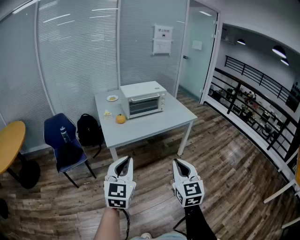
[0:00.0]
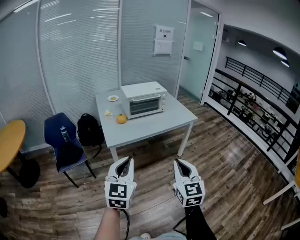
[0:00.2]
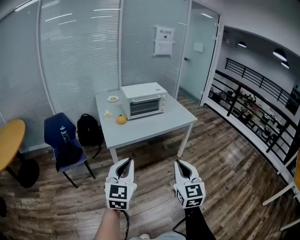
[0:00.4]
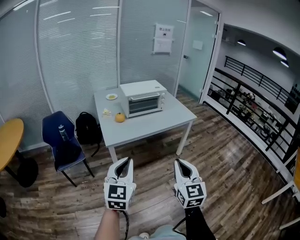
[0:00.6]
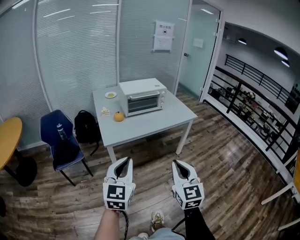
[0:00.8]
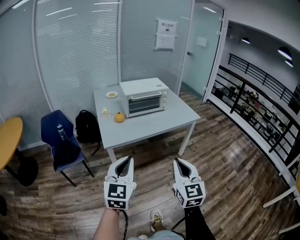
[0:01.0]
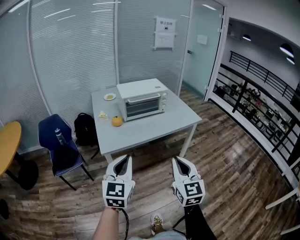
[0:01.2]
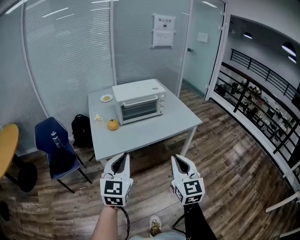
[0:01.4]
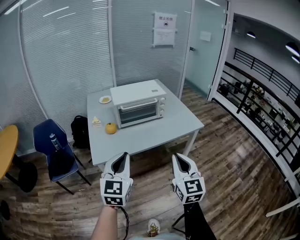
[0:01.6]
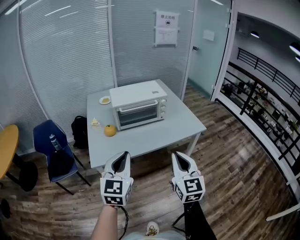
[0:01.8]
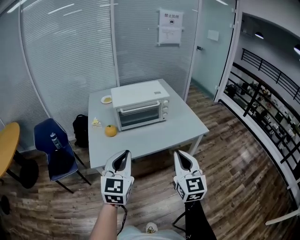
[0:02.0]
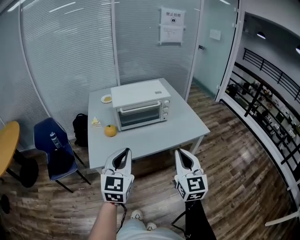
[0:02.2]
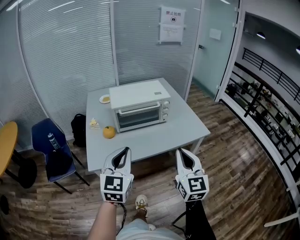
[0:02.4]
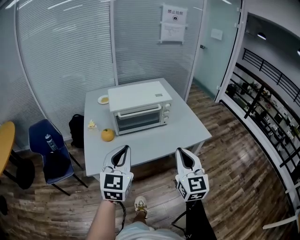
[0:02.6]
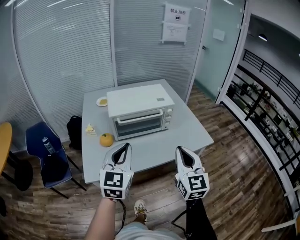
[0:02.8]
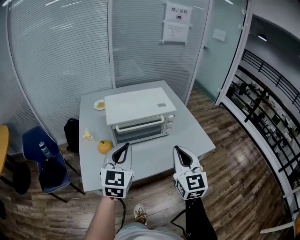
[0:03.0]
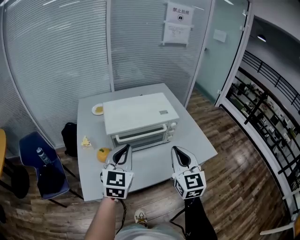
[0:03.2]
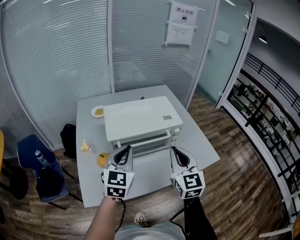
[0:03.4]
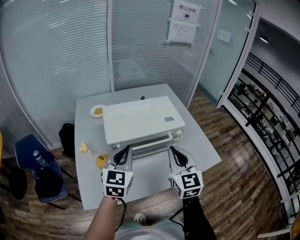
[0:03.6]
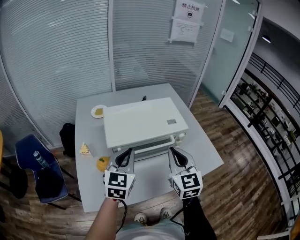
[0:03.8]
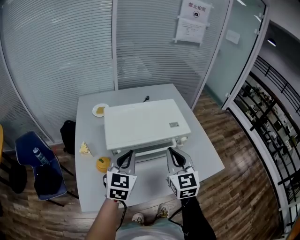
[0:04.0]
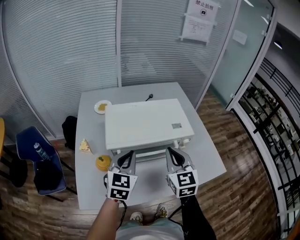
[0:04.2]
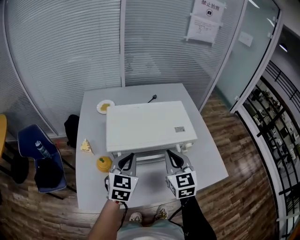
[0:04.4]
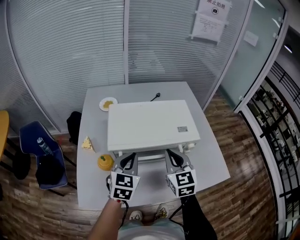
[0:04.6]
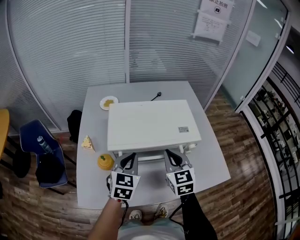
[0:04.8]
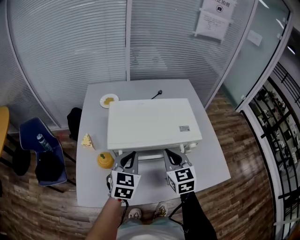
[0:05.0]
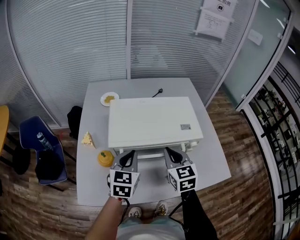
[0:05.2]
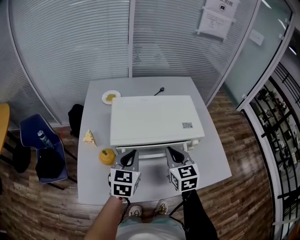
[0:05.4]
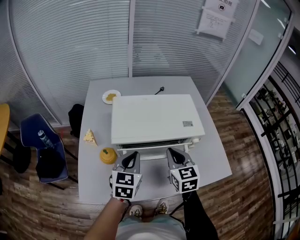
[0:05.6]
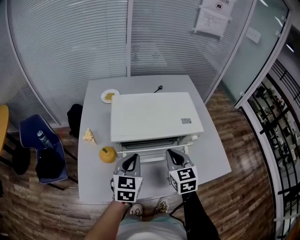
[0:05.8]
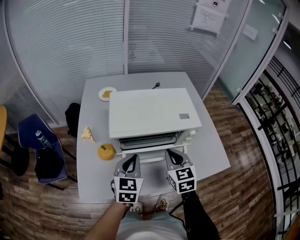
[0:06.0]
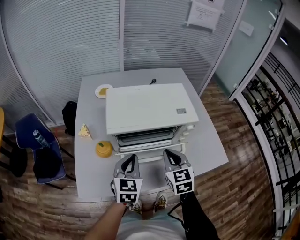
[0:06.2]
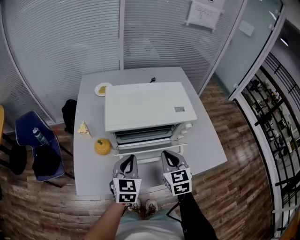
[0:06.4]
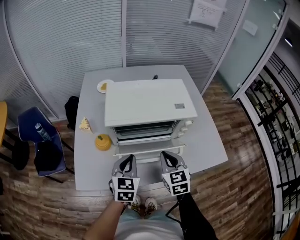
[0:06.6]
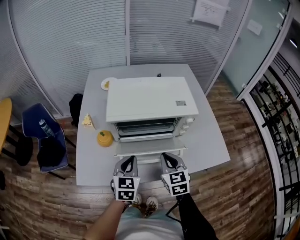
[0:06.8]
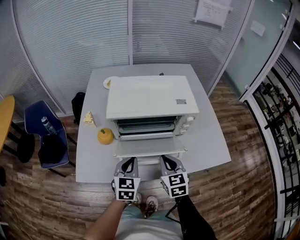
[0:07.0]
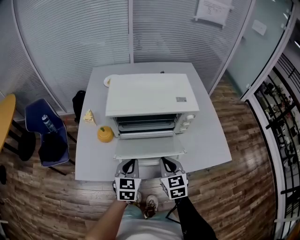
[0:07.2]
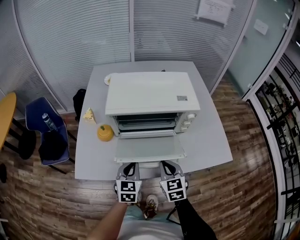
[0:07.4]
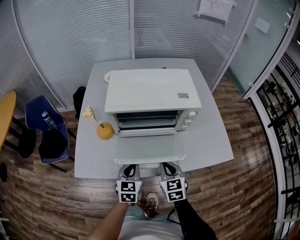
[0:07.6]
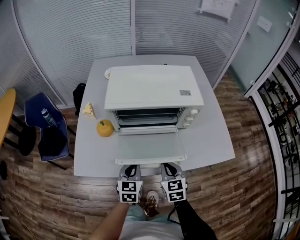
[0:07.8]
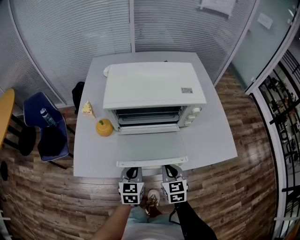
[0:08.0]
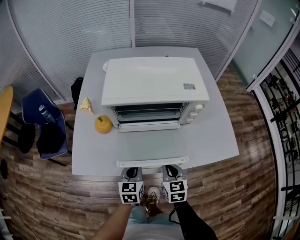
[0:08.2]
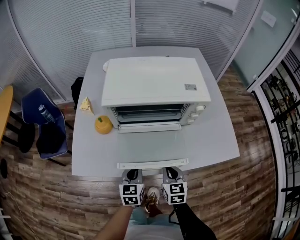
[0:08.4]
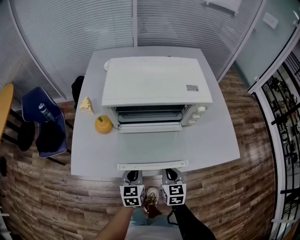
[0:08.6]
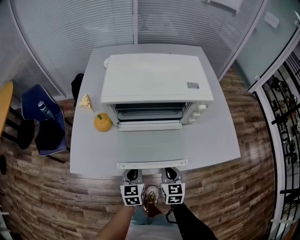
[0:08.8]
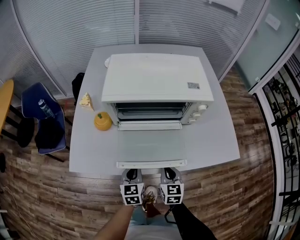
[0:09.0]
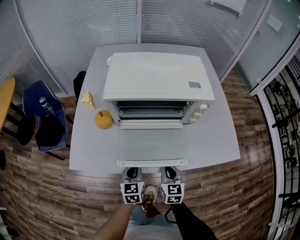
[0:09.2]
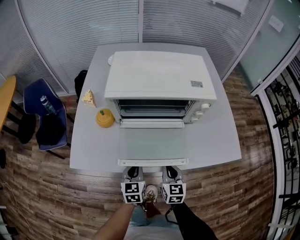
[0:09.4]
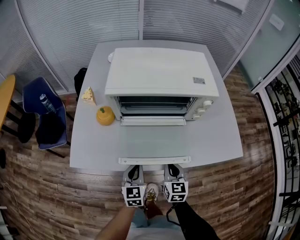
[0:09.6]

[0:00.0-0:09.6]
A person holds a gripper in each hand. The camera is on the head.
0:00.0 to 0:01.6: The two grippers go approximately 25 cm forward.
0:01.6 to 0:03.2: Both grippers travel together forward, about 35 cm.
0:03.2 to 0:04.8: The two grippers go about 20 cm forward and downward. The right gripper changes its angle by about 20 degrees.
0:04.8 to 0:06.4: The right gripper moves backward and downward, roughly 10 cm. The left gripper goes some 10 cm backward.
0:06.4 to 0:08.0: The two grippers go some 15 cm downward and backward.
0:08.0 to 0:09.6: The left gripper moves downward, some 5 cm.

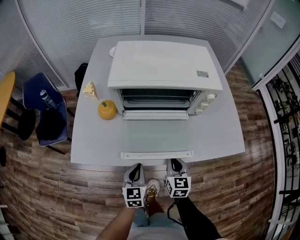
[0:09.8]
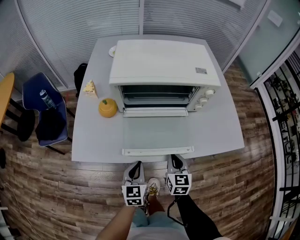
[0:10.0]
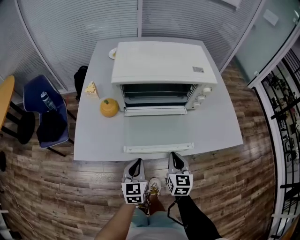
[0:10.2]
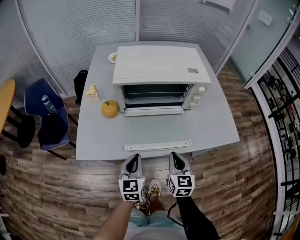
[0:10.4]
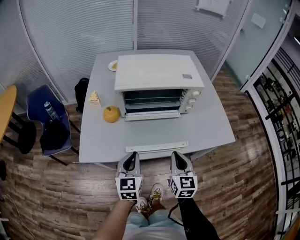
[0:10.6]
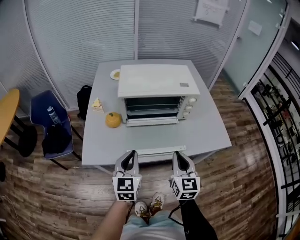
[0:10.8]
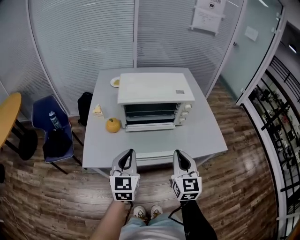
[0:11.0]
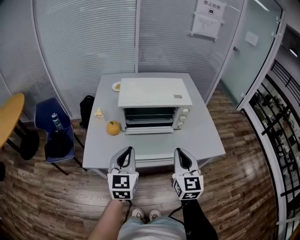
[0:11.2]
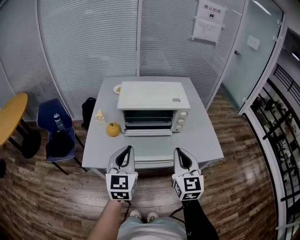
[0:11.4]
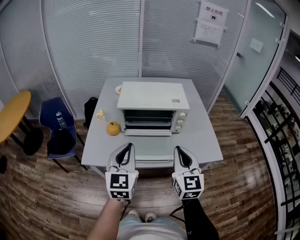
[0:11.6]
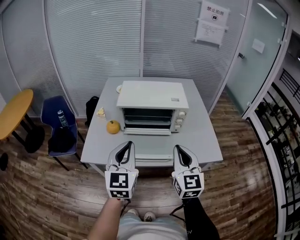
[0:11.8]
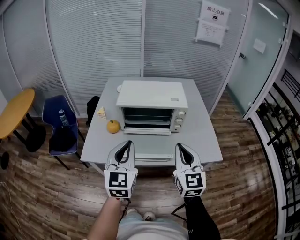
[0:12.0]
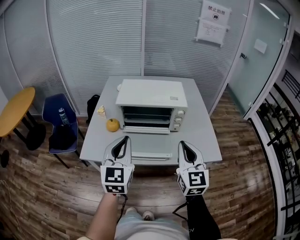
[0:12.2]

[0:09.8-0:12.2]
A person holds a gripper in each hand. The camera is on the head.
0:09.8 to 0:11.0: Both grippers travel together upward, approximately 25 cm. The right gripper changes its angle by about 20 degrees.
0:11.0 to 0:12.2: Both grippers travel together upward and to the right, approximately 10 cm.

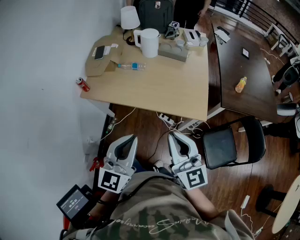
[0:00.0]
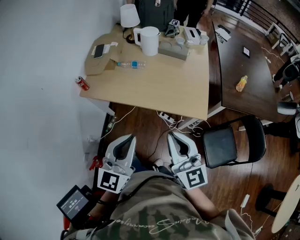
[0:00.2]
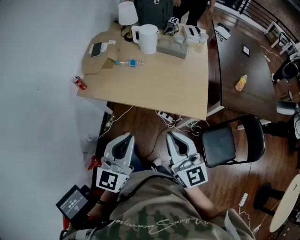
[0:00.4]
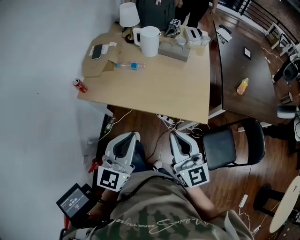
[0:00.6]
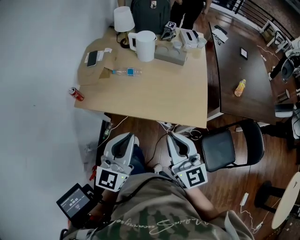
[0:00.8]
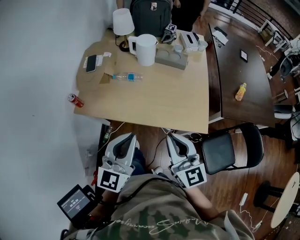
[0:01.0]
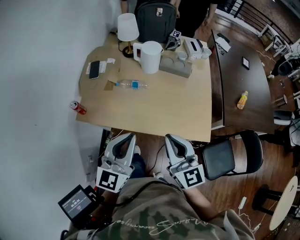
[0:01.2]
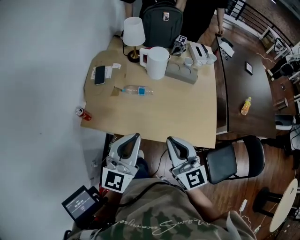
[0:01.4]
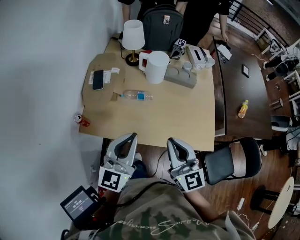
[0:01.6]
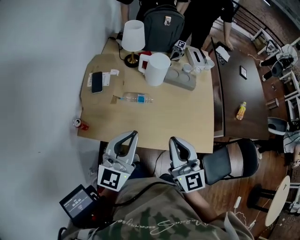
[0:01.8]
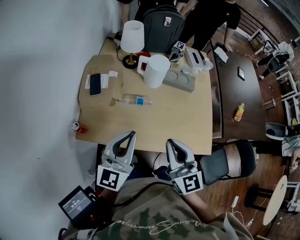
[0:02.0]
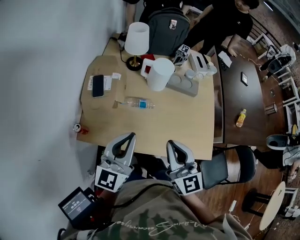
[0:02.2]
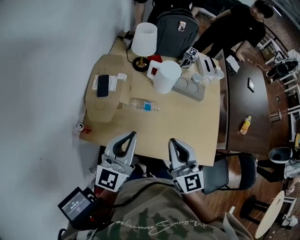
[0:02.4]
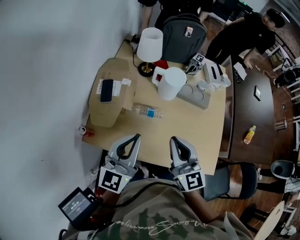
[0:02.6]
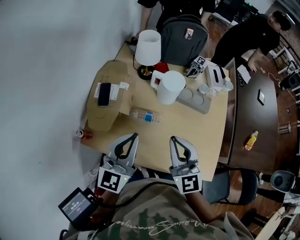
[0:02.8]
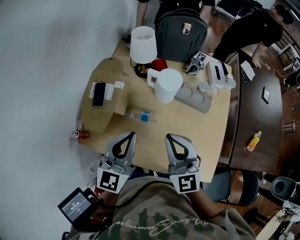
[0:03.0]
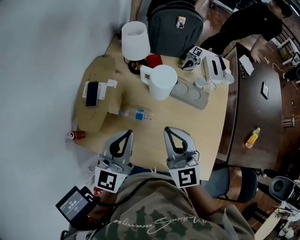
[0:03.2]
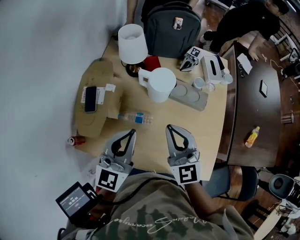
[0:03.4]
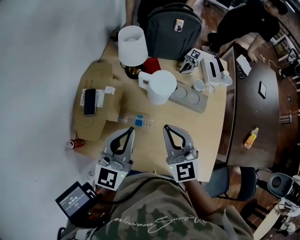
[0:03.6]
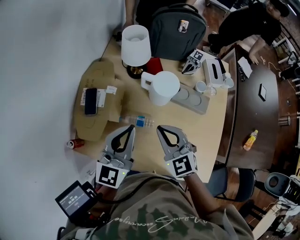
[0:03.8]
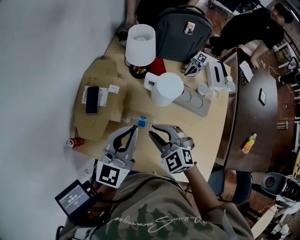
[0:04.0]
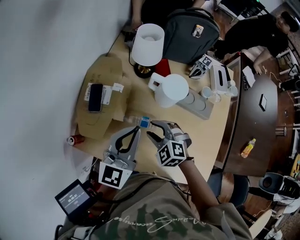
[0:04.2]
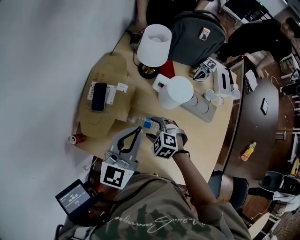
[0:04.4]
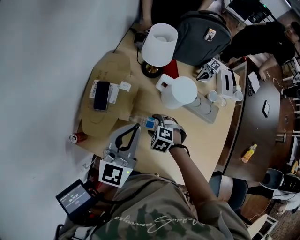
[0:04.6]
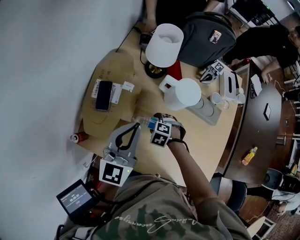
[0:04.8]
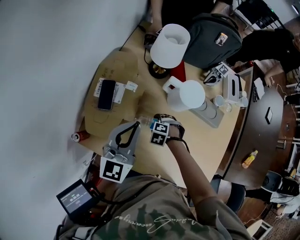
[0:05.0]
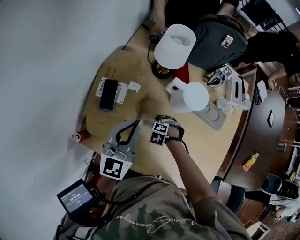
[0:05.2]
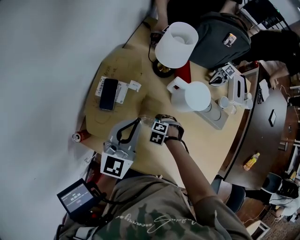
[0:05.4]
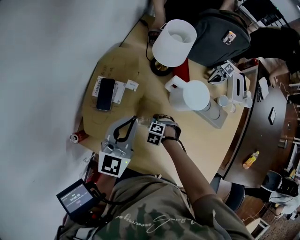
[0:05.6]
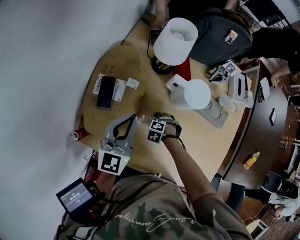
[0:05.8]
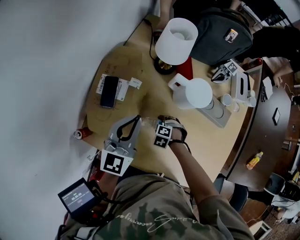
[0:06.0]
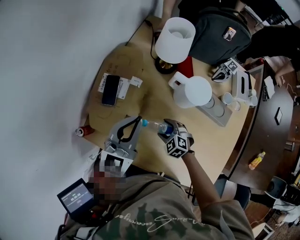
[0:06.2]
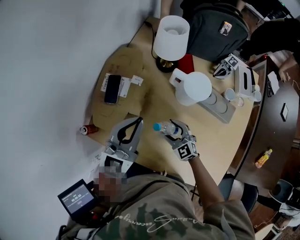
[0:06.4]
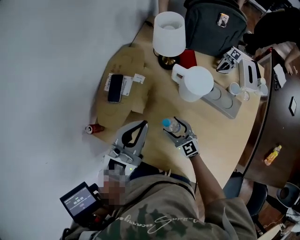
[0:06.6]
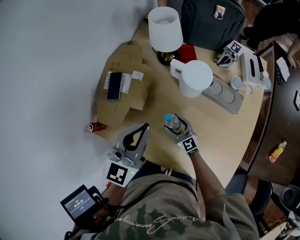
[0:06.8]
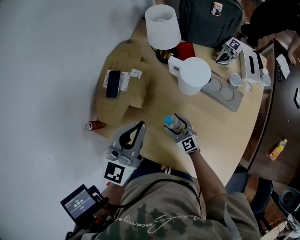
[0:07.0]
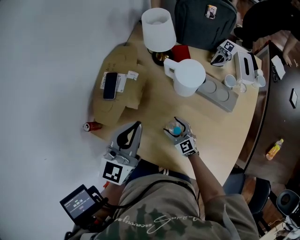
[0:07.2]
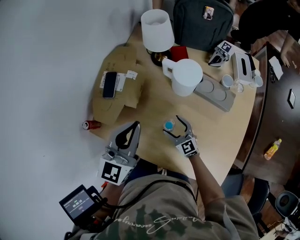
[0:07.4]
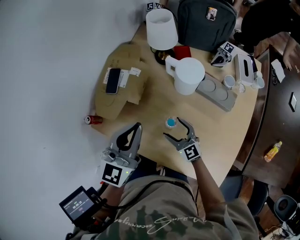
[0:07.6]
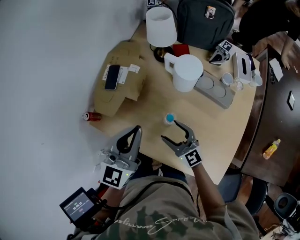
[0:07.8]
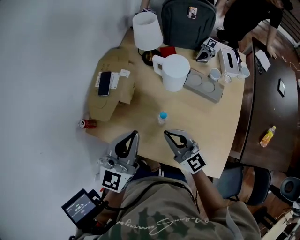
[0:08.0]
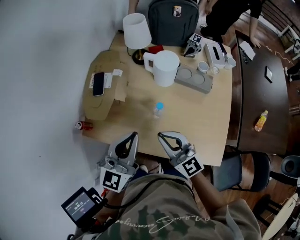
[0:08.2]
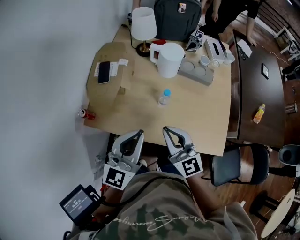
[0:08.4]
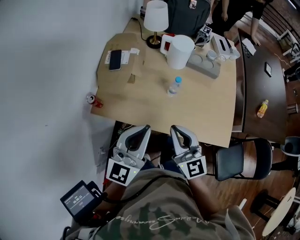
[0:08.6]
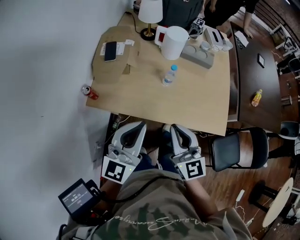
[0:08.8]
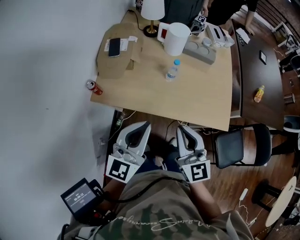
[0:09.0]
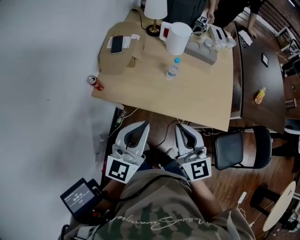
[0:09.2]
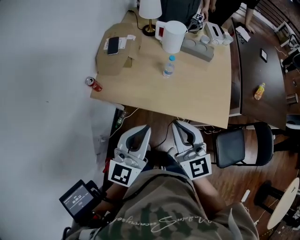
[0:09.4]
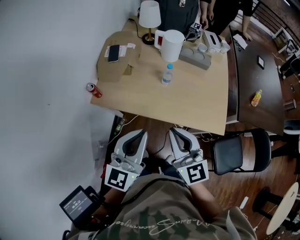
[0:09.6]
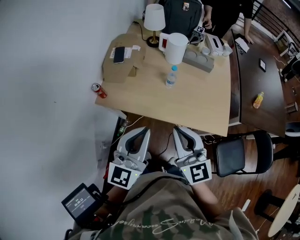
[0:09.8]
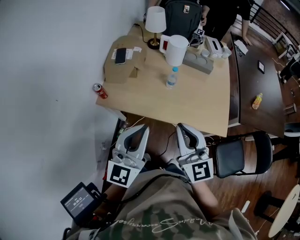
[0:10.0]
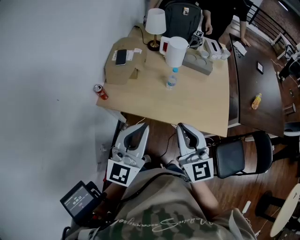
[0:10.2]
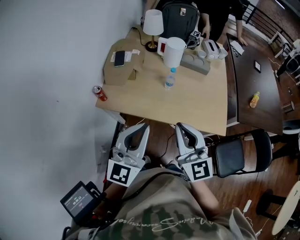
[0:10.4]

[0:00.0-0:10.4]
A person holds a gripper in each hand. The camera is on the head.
0:00.0 to 0:01.4: The right gripper moves forward and to the left, approximately 25 cm, while the left gripper travels forward by roughly 25 cm.
0:01.4 to 0:03.0: Both grippers travel together forward, about 20 cm.
0:03.0 to 0:04.4: The left gripper heads forward, covering some 10 cm. The right gripper shifts about 30 cm downward, angles its fingers downward, by about 60 degrees, and opens up.
0:04.4 to 0:06.0: The right gripper shifts roughly 15 cm downward, and turns by about 20 degrees, while the left gripper moves some 10 cm.
0:06.0 to 0:07.4: The left gripper moves some 15 cm, while the right gripper travels upward by roughly 10 cm, and tilts its fingers approximately 60 degrees upward.
0:07.4 to 0:09.0: The right gripper changes place by some 40 cm, swivels some 30 degrees, and closes. The left gripper ends up about 30 cm from where it was.
0:09.0 to 0:10.4: The right gripper travels upward by roughly 5 cm. The left gripper heads upward and backward, covering approximately 10 cm.

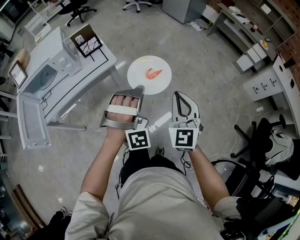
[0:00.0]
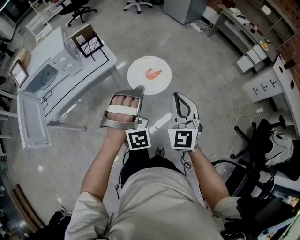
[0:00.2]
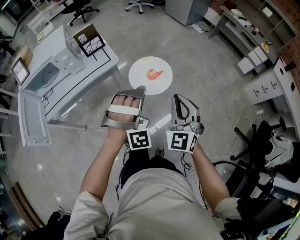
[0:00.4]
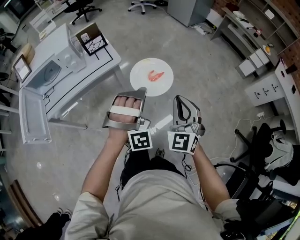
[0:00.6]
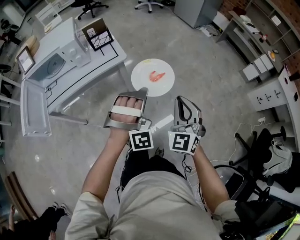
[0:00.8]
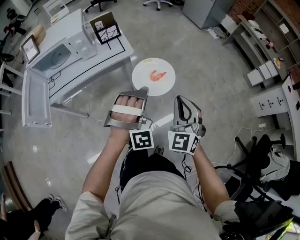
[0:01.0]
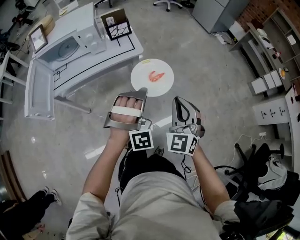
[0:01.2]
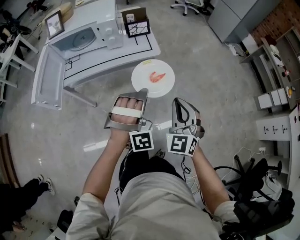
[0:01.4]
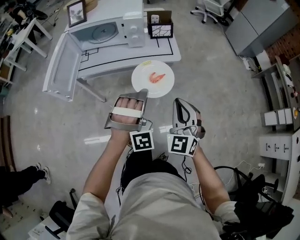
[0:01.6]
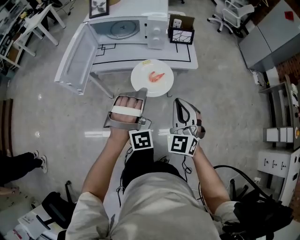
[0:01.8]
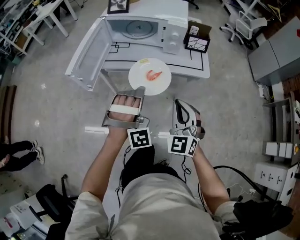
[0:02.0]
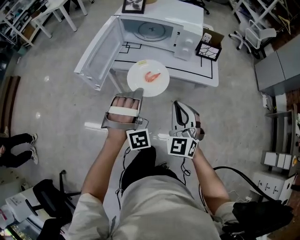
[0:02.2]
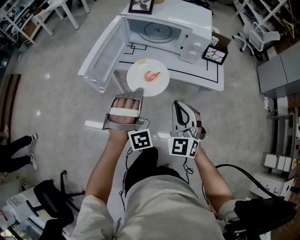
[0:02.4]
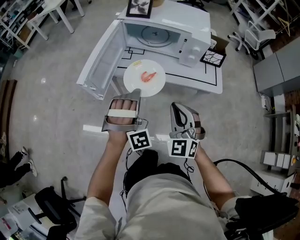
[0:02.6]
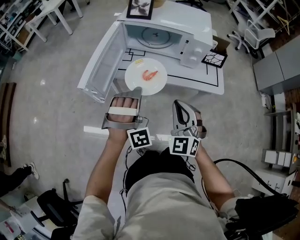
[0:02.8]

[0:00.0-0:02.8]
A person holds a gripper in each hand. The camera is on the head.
0:00.0 to 0:01.4: Both grippers move to the left, approximately 15 cm. The right gripper turns by some 30 degrees.
0:01.4 to 0:02.8: The left gripper shifts by approximately 35 cm, and turns by approximately 30 degrees. The right gripper shifts by some 35 cm, and swivels about 30 degrees.
